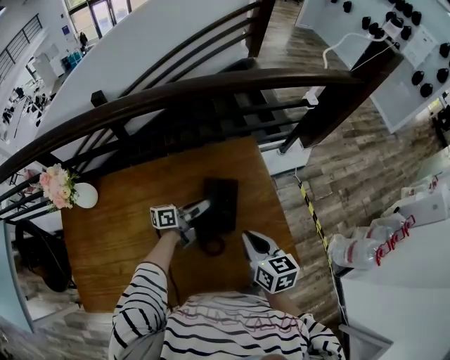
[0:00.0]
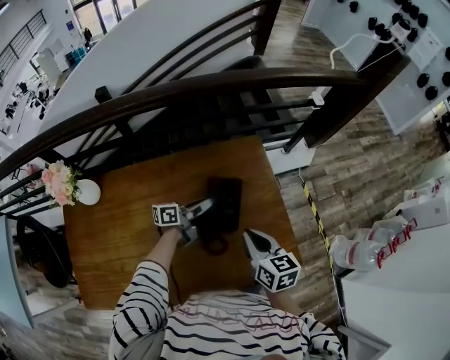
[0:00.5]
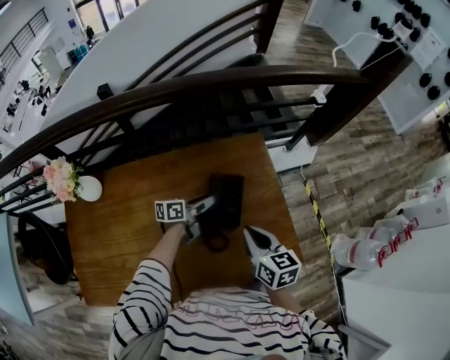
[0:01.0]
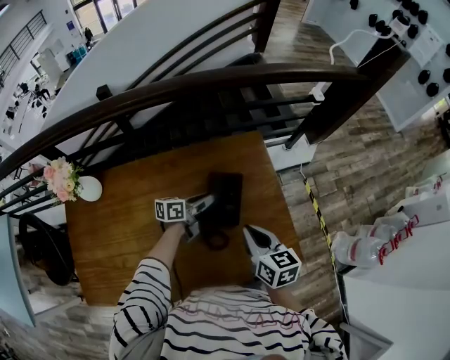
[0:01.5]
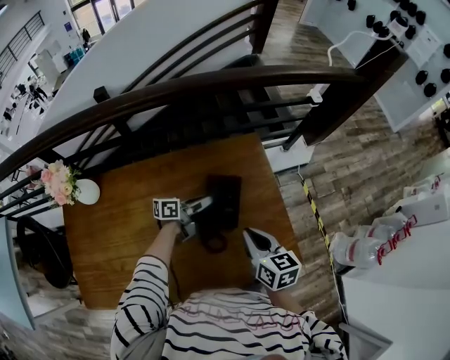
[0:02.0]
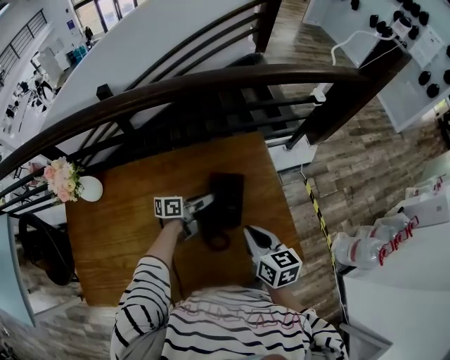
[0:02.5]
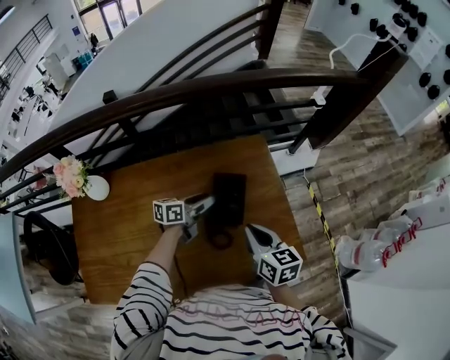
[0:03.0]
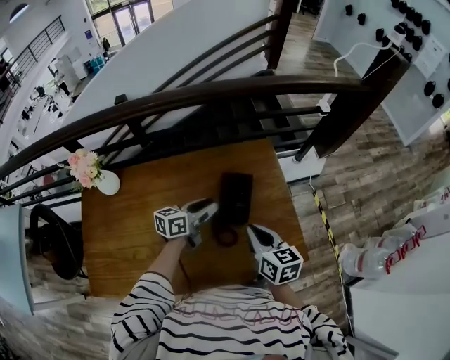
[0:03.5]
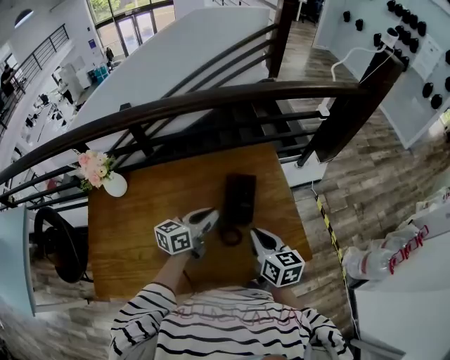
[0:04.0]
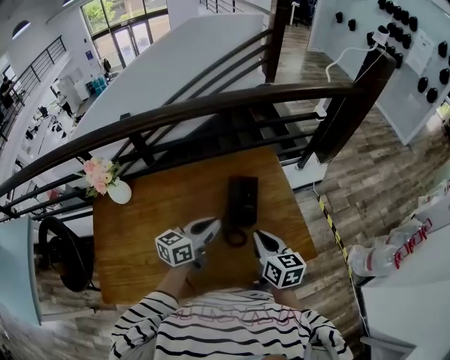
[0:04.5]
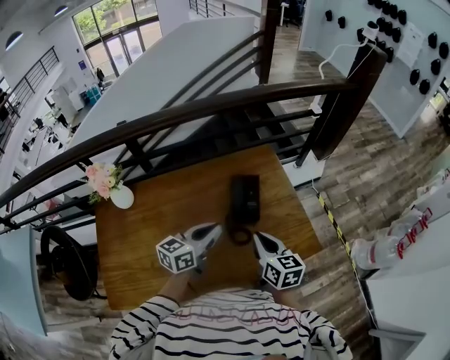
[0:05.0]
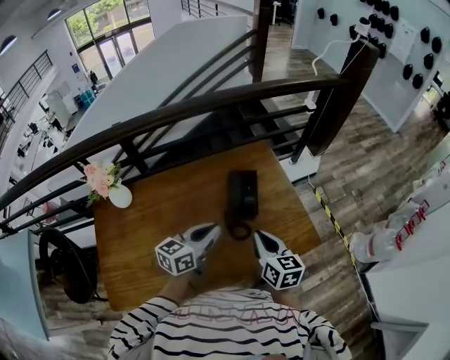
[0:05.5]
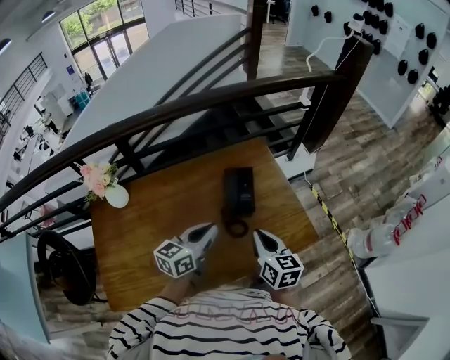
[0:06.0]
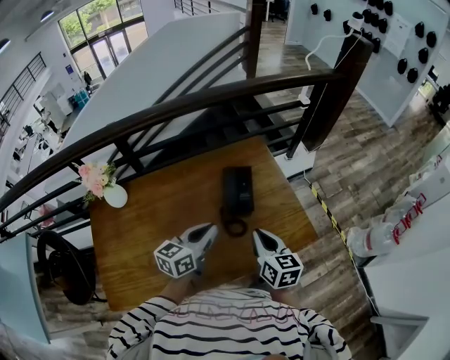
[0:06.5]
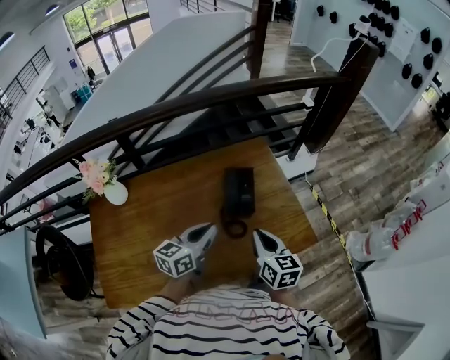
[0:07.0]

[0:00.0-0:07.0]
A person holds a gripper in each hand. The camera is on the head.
0:00.0 to 0:02.0: The left gripper opens, then closes once more.
0:02.0 to 0:03.5: The right gripper changes place by some 5 cm, while the left gripper is displaced upward and backward by some 15 cm, and turns by some 20 degrees.
0:03.5 to 0:05.0: The left gripper travels backward and upward by approximately 15 cm, and closes its fingers. The right gripper travels backward by about 10 cm.
0:05.0 to 0:07.0: The grippers move only a little.

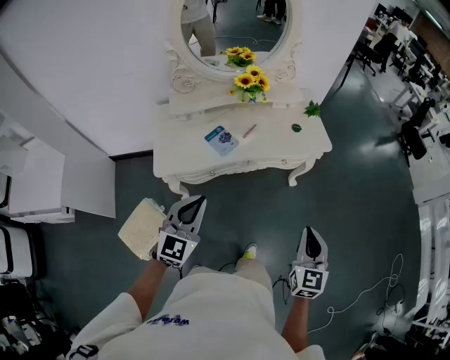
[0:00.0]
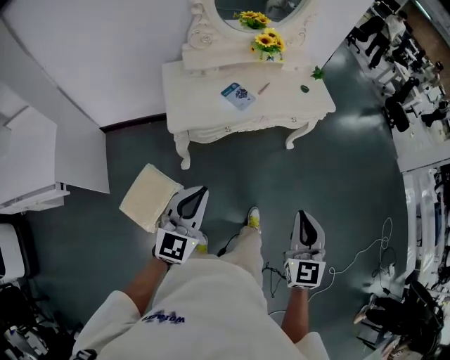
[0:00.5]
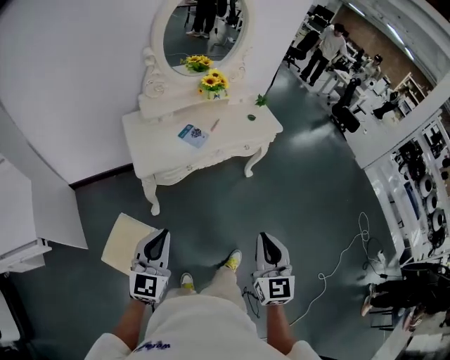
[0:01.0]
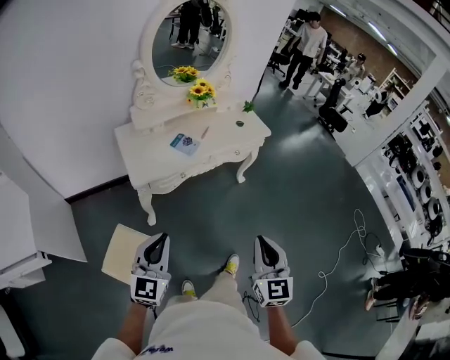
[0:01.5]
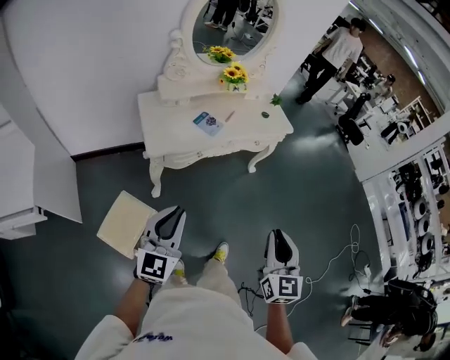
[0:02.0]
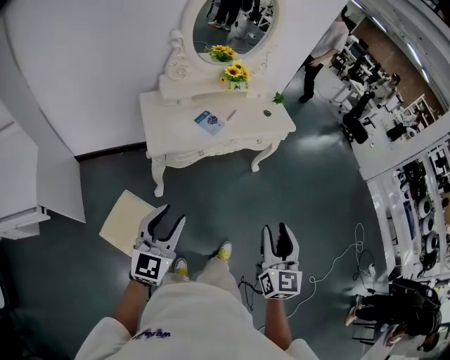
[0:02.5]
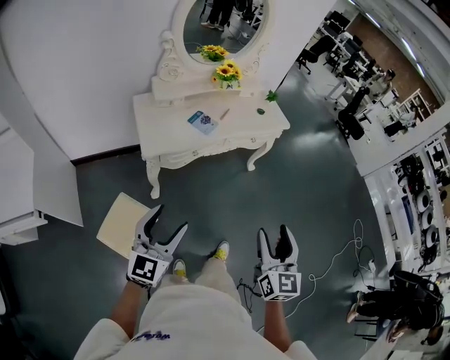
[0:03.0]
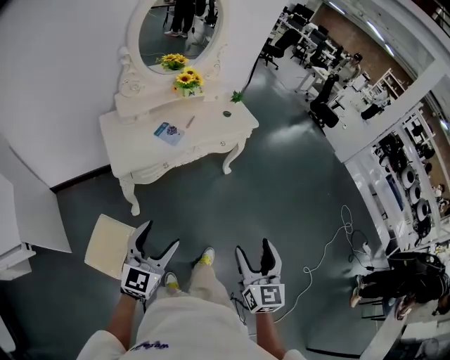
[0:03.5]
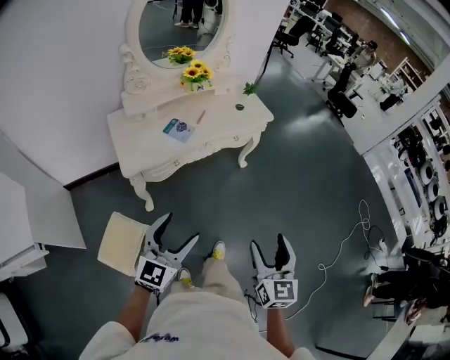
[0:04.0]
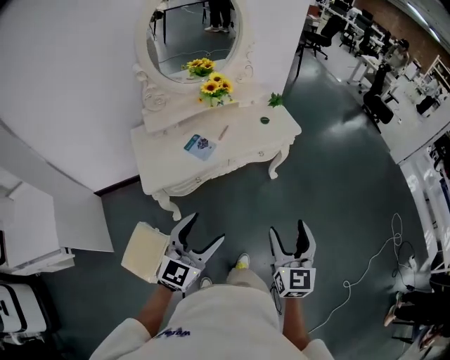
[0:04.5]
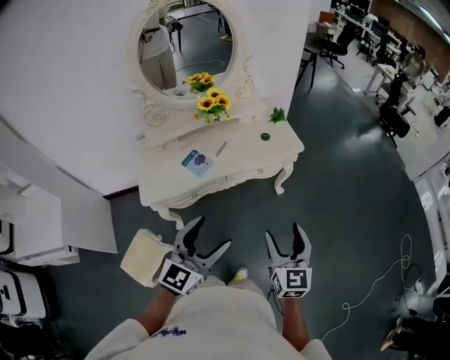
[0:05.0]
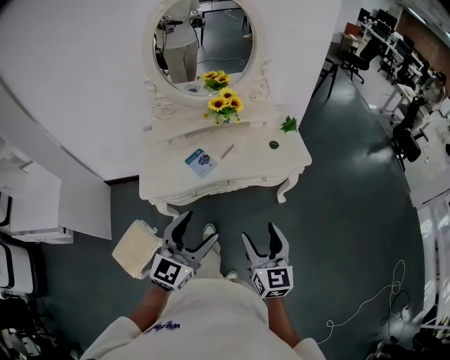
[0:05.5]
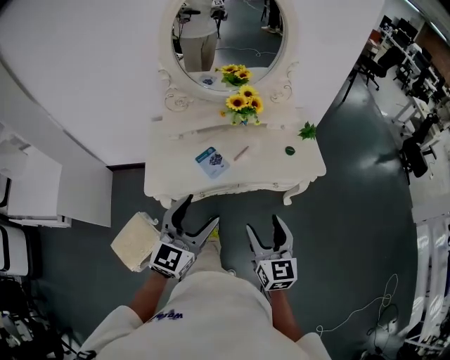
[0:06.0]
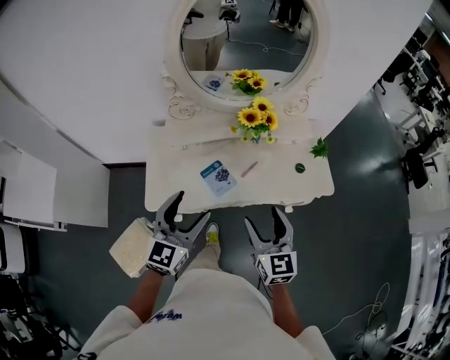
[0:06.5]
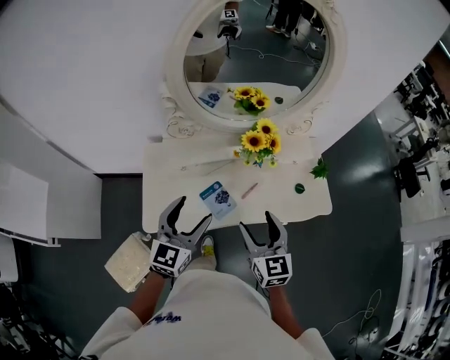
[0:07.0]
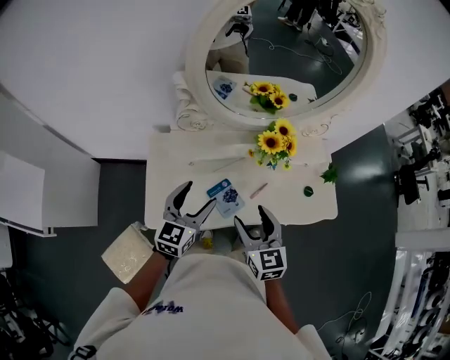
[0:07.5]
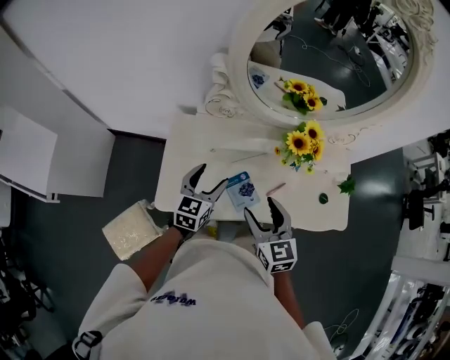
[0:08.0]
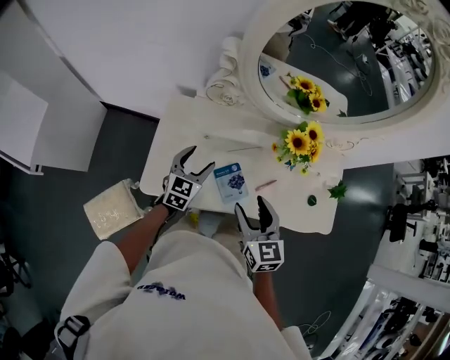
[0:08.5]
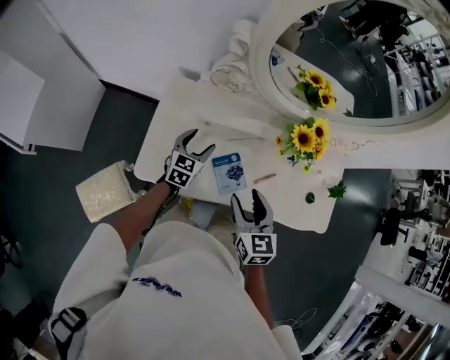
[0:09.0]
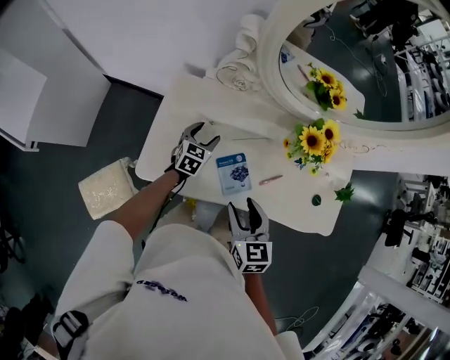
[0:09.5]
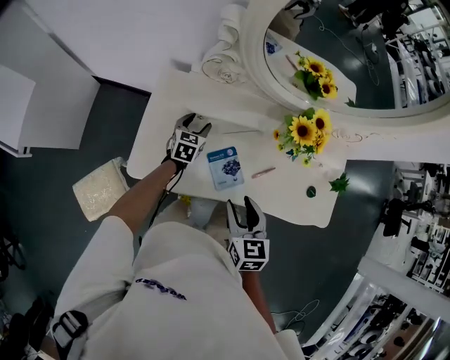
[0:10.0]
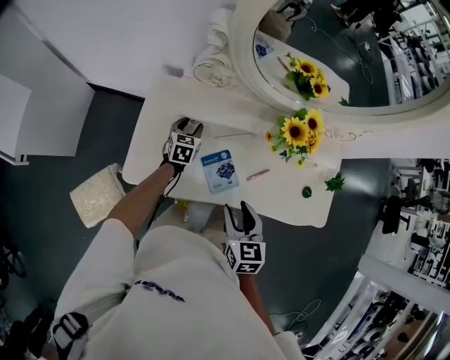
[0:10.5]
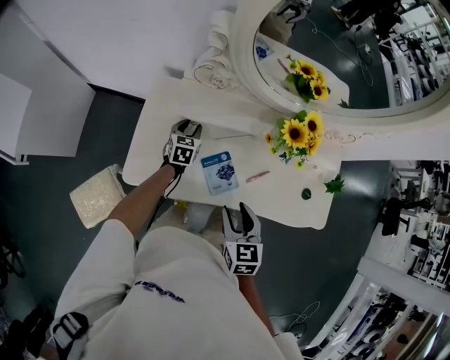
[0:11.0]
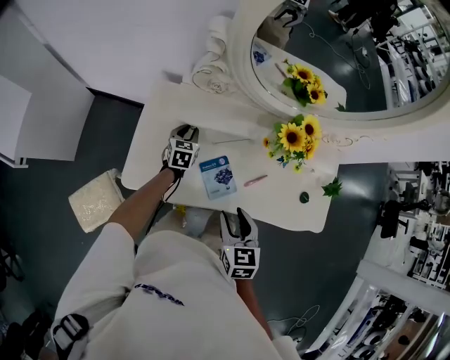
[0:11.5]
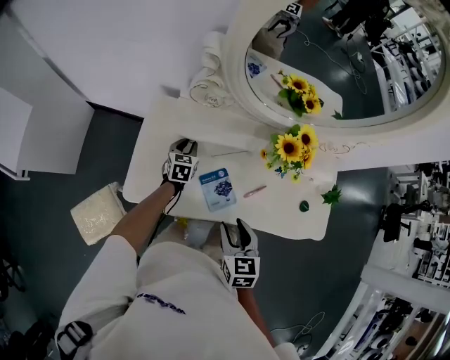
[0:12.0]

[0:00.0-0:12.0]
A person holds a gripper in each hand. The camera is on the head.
0:00.0 to 0:02.0: Both grippers move backward and to the left, approximately 30 cm.
0:02.0 to 0:04.0: The left gripper moves to the right and forward, approximately 10 cm, and opens up, while the right gripper is displaced to the right by approximately 10 cm, and opens.
0:04.0 to 0:06.0: The left gripper ends up roughly 30 cm from where it was, and turns by approximately 20 degrees, while the right gripper shifts by about 35 cm, and changes its angle by roughly 30 degrees.
0:06.0 to 0:08.0: The right gripper heads forward and to the left, covering roughly 35 cm, and rotates about 20 degrees; the left gripper moves forward, downward and to the left, roughly 40 cm, and rotates roughly 30 degrees.
0:08.0 to 0:10.0: The right gripper moves downward, roughly 10 cm. The left gripper heads downward and forward, covering about 20 cm.
0:10.0 to 0:12.0: The left gripper closes.

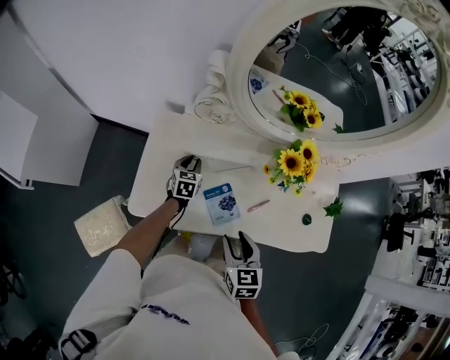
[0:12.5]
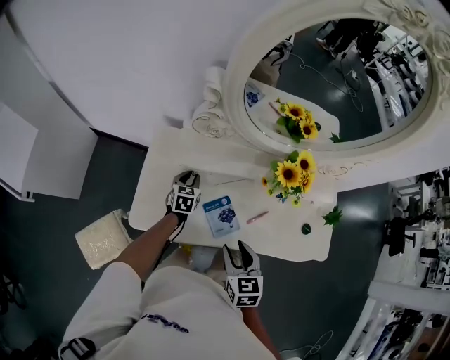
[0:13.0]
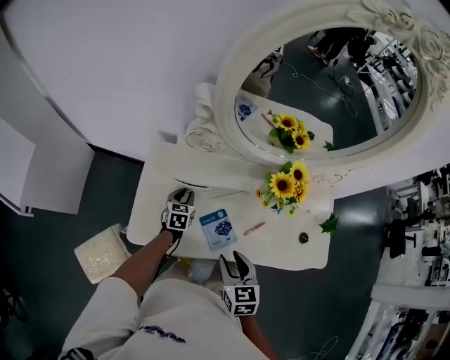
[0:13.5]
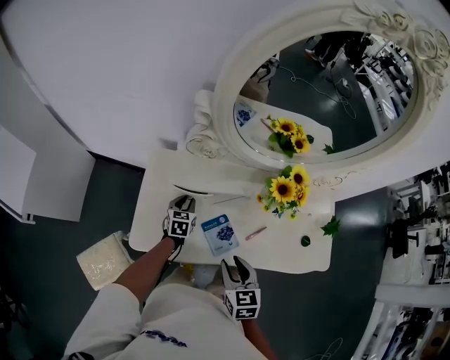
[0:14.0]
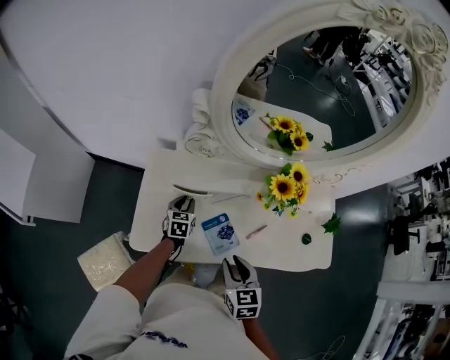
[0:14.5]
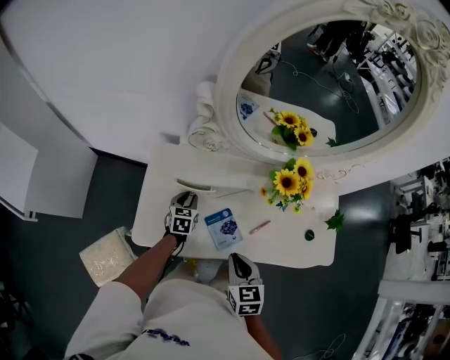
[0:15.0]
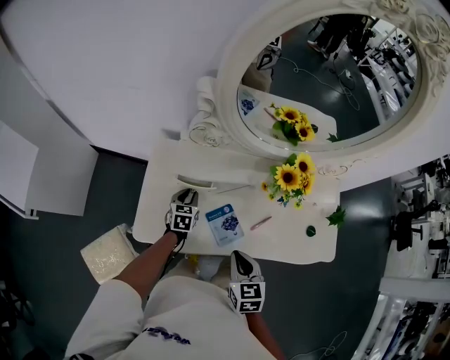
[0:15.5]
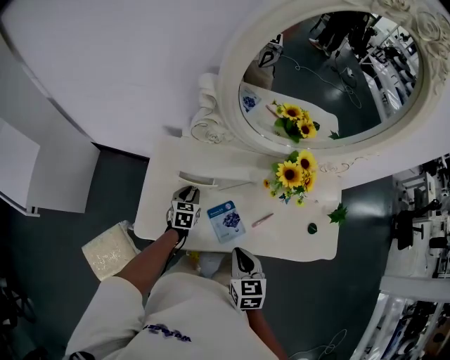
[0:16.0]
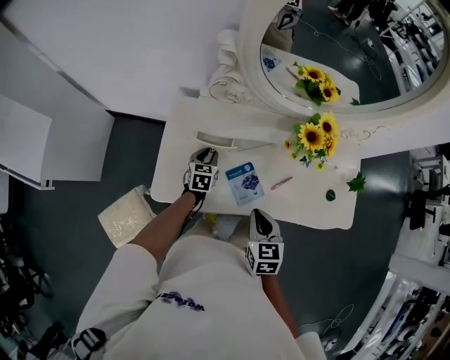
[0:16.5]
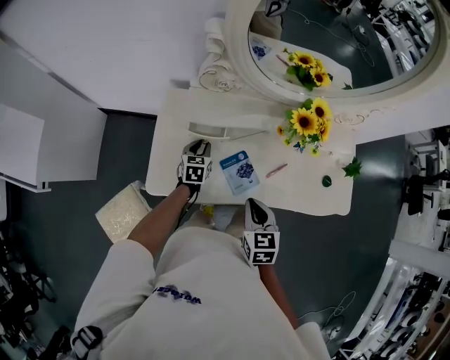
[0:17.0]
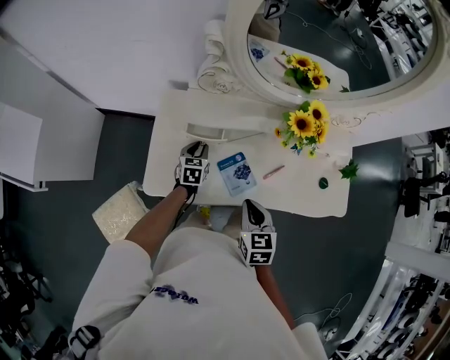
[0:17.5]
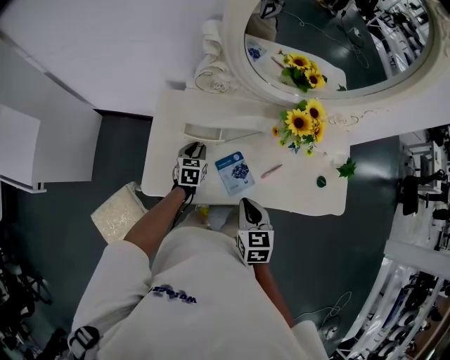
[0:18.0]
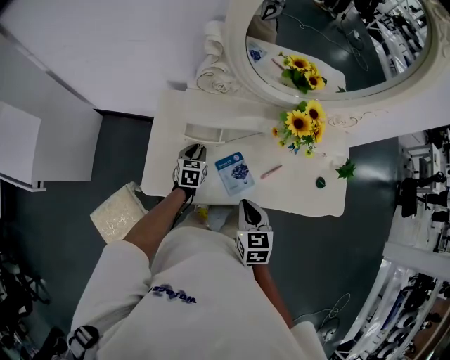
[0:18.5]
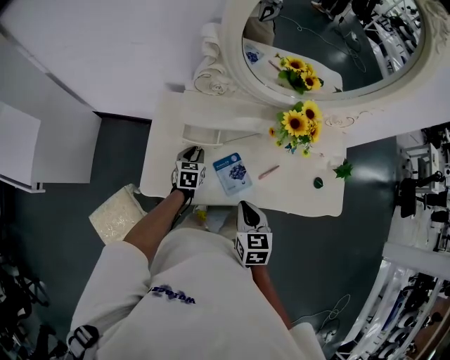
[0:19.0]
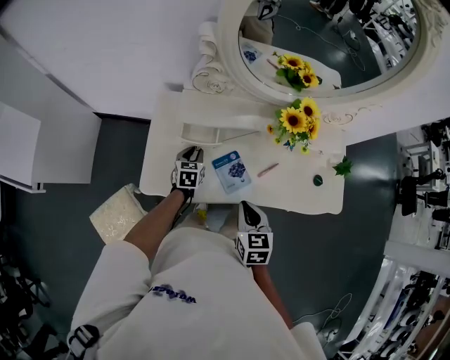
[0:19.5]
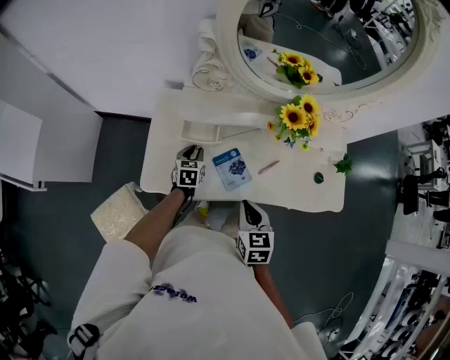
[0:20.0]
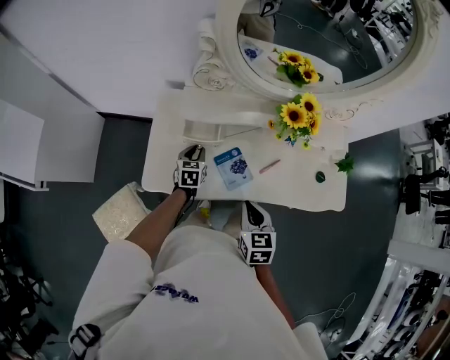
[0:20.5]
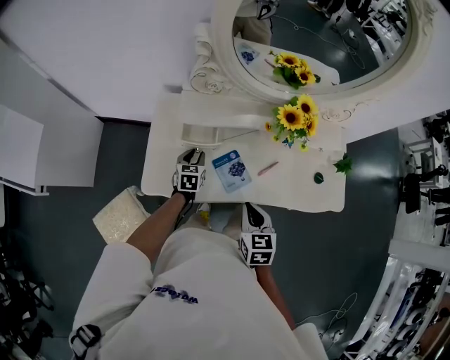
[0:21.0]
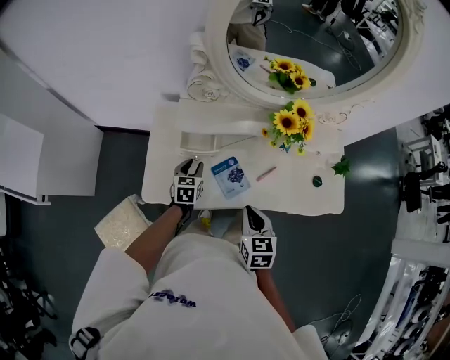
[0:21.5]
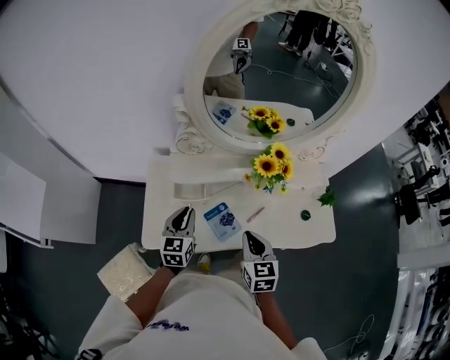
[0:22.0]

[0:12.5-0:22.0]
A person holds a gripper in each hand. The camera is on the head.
0:12.5 to 0:18.0: There are only small adjustments of the grippers.
0:18.0 to 0:20.0: The grippers move only a little.
0:20.0 to 0:22.0: The left gripper goes approximately 20 cm upward, and changes its angle by about 20 degrees. Meanwhile the right gripper goes roughly 5 cm upward.
